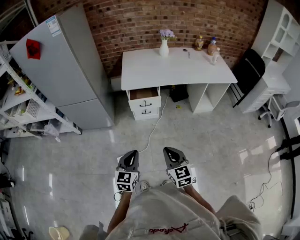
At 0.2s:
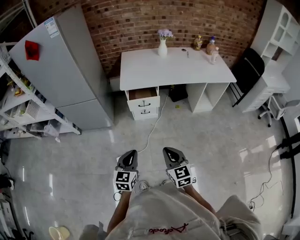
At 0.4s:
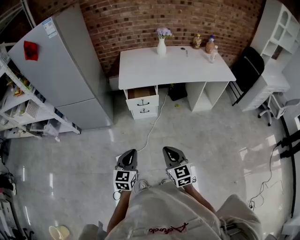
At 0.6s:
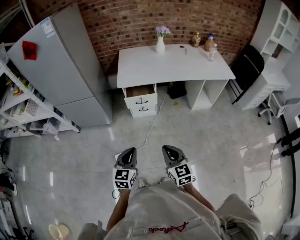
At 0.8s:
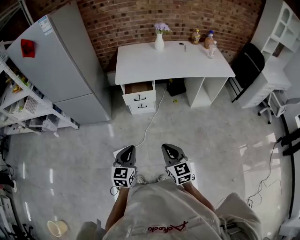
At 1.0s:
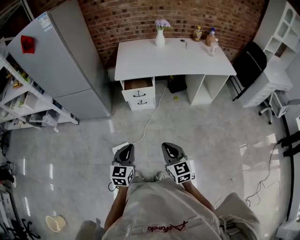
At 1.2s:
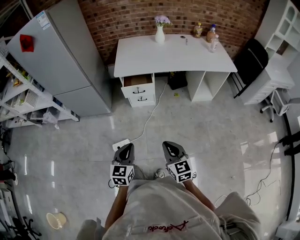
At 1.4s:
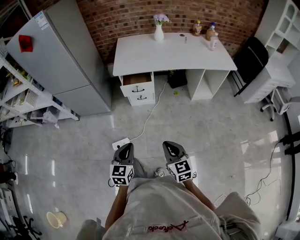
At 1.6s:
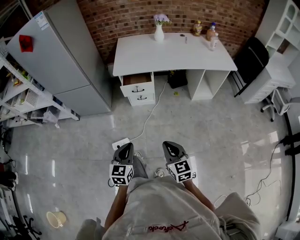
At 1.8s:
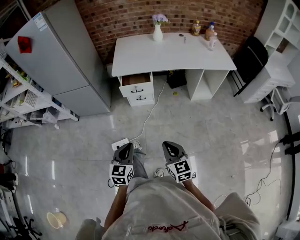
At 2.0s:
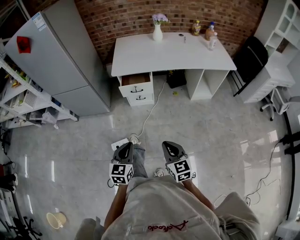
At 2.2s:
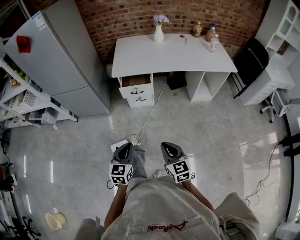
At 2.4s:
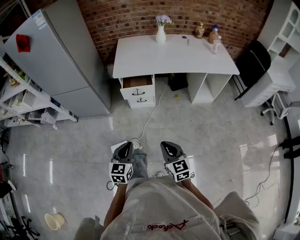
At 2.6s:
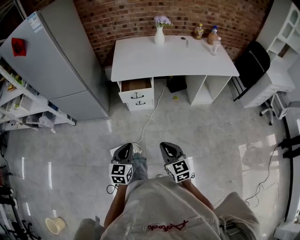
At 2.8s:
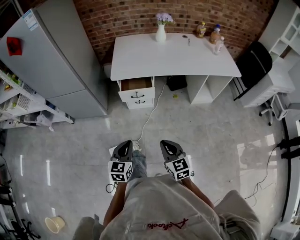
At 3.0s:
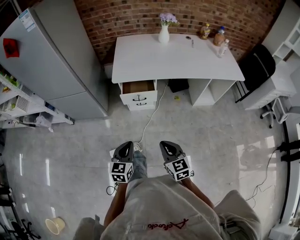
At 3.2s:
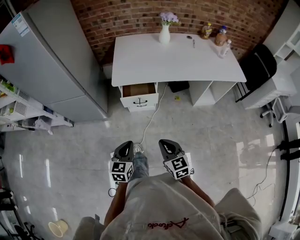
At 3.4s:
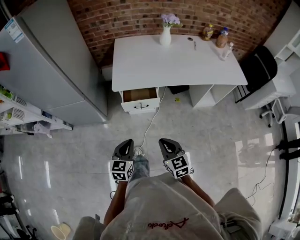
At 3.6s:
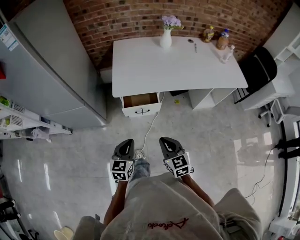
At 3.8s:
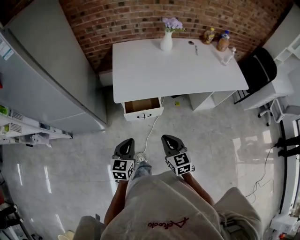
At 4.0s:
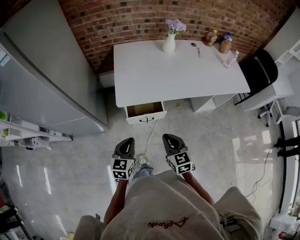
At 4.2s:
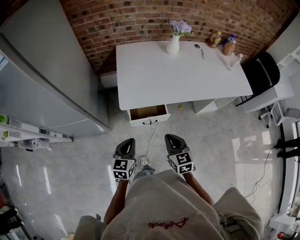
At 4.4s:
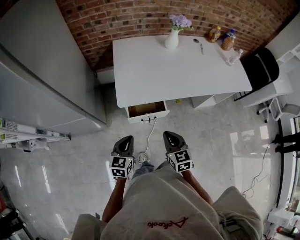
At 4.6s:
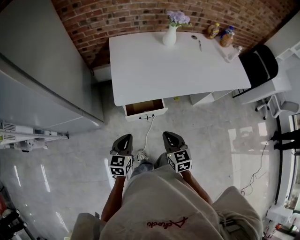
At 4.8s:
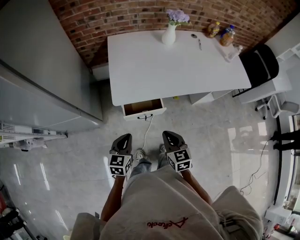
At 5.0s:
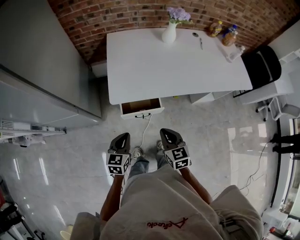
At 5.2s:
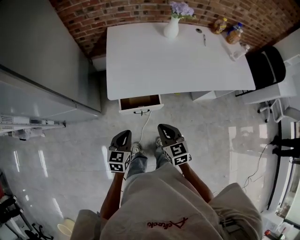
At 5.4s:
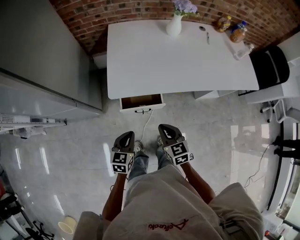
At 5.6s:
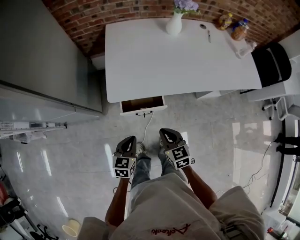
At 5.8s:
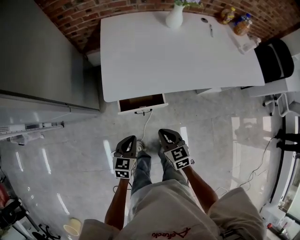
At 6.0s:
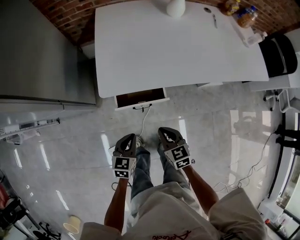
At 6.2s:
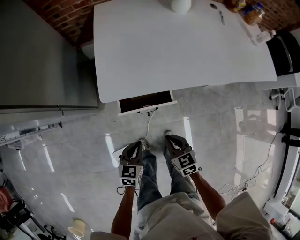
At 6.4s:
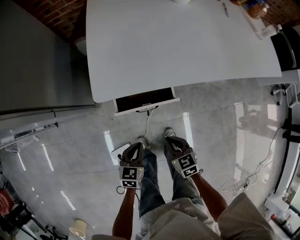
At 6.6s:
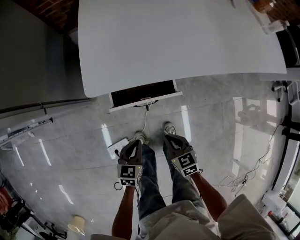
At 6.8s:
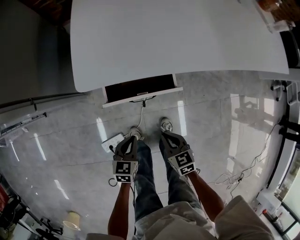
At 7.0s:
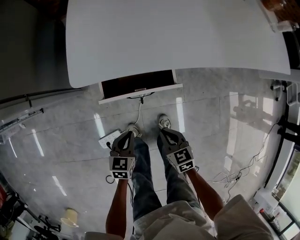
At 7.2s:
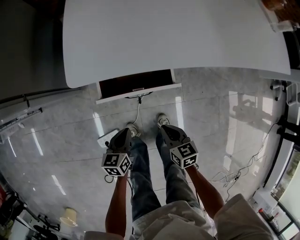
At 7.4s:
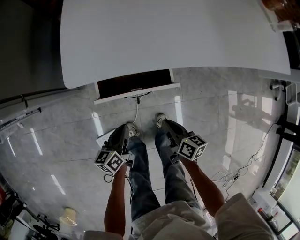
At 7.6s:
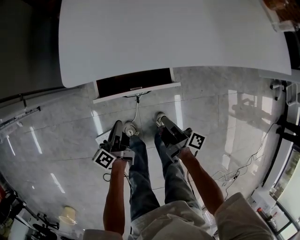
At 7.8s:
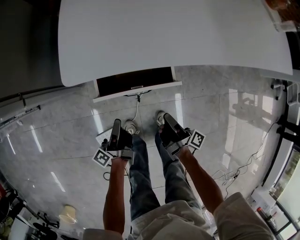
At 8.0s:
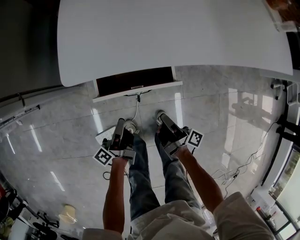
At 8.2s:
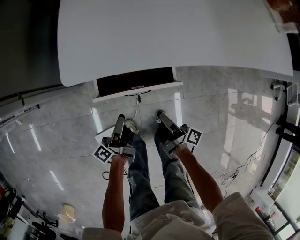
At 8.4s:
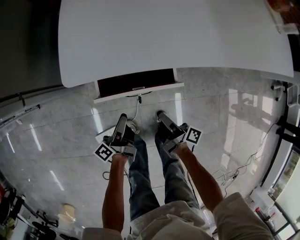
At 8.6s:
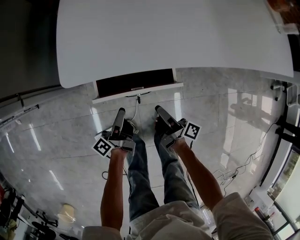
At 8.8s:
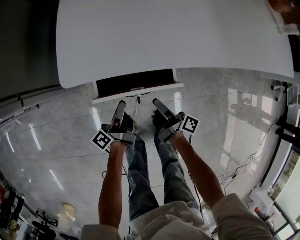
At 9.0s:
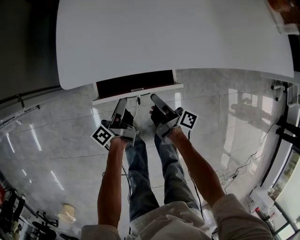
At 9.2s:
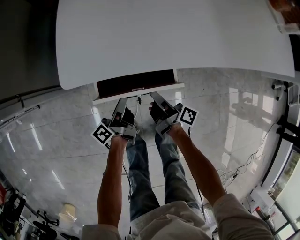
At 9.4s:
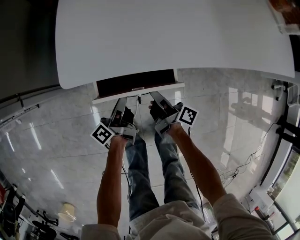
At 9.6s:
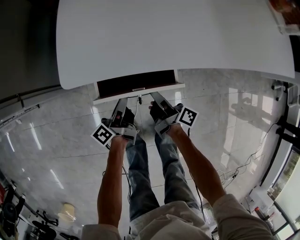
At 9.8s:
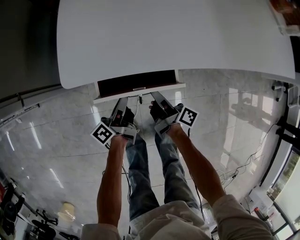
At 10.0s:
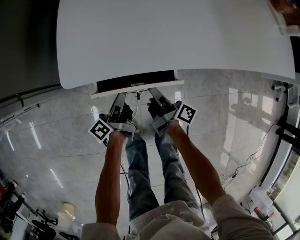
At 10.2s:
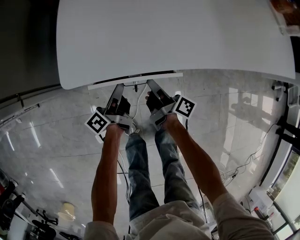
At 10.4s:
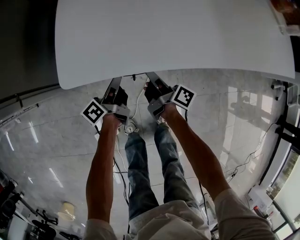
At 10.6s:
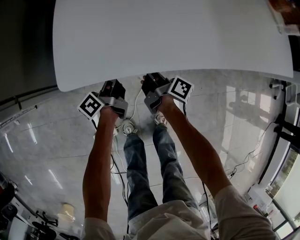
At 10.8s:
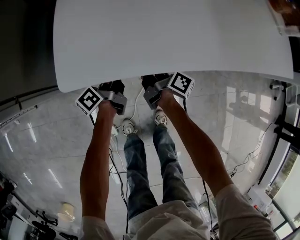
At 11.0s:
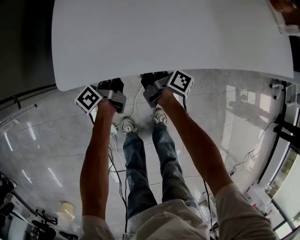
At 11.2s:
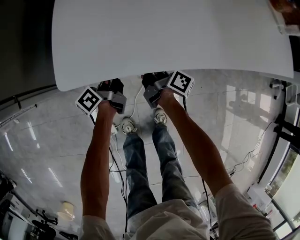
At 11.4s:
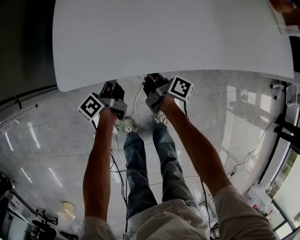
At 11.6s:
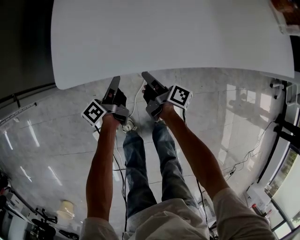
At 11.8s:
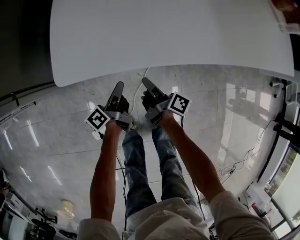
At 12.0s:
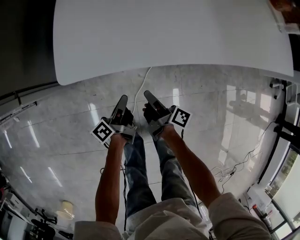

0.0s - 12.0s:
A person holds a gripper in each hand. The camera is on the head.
0.0s - 1.6s: The grippers both shift to the right by some 10 cm.
1.6s - 3.0s: Both grippers move forward, about 15 cm.
3.0s - 4.4s: The right gripper moves forward, about 25 cm. The left gripper goes about 30 cm forward and to the left.
4.4s - 6.0s: The left gripper moves downward and to the right, about 15 cm; the right gripper goes some 15 cm downward.
6.0s - 7.6s: The two grippers go approximately 20 cm downward. The left gripper rotates around the line of its fingers by about 60 degrees, counterclockwise from behind; the right gripper twists some 80 degrees clockwise, seen from behind.
7.6s - 9.0s: The two grippers go roughly 10 cm forward. The left gripper opens up. Meanwhile the right gripper opens up.
9.0s - 10.4s: Both grippers move forward, about 10 cm. The right gripper closes. Meanwhile the left gripper closes up.
10.4s - 12.0s: The two grippers go roughly 10 cm backward.

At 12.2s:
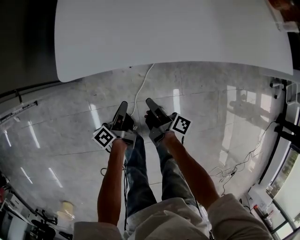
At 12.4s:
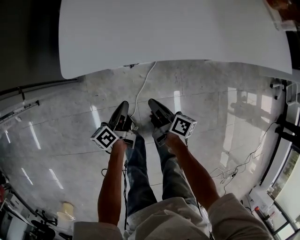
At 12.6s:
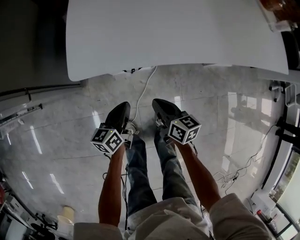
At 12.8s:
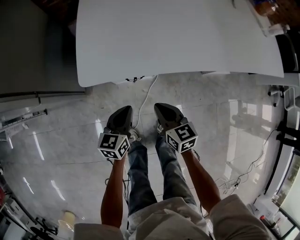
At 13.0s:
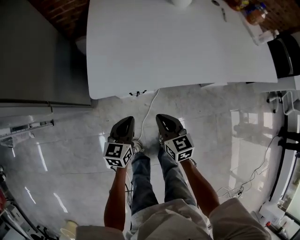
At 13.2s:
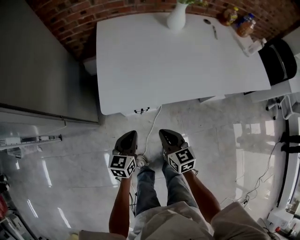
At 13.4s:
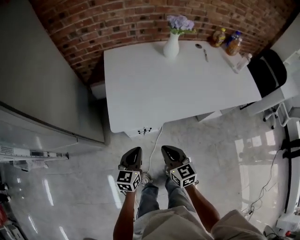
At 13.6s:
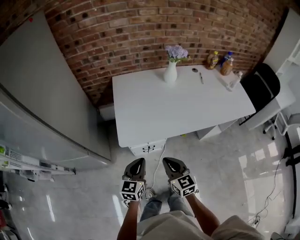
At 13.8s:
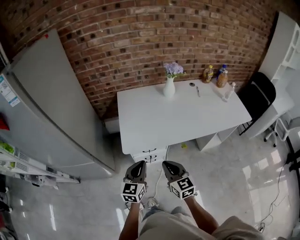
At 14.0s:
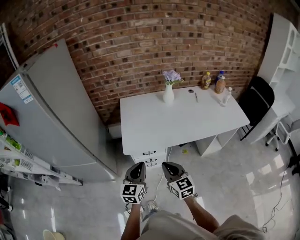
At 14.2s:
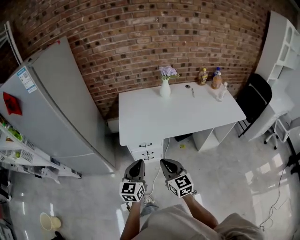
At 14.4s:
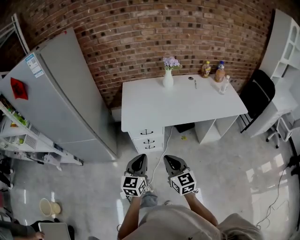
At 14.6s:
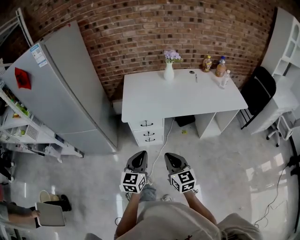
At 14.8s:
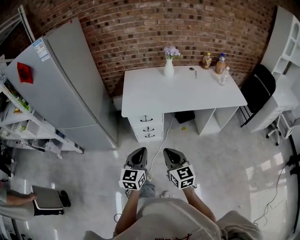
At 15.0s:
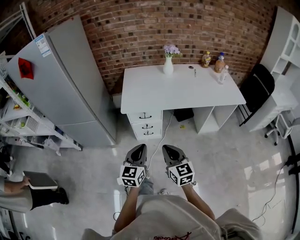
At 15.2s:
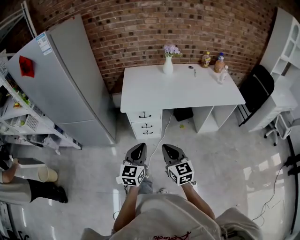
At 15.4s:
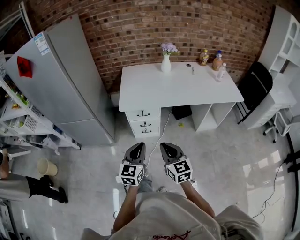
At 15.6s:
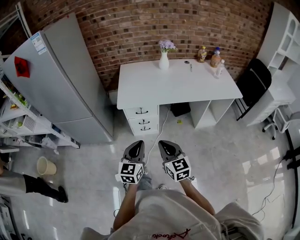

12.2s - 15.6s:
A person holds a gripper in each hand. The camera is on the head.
12.2s - 13.8s: The two grippers go approximately 40 cm upward. The left gripper twists roughly 80 degrees clockwise, seen from behind, while the right gripper twists roughly 80 degrees counterclockwise, seen from behind.
13.8s - 15.6s: The two grippers go roughly 25 cm backward.

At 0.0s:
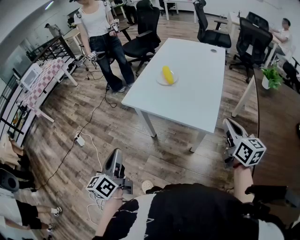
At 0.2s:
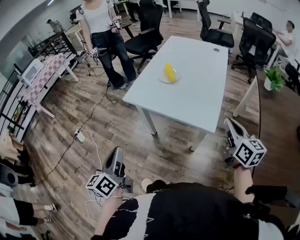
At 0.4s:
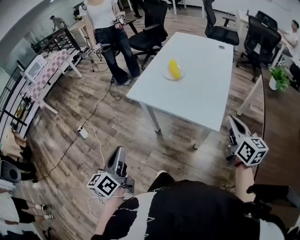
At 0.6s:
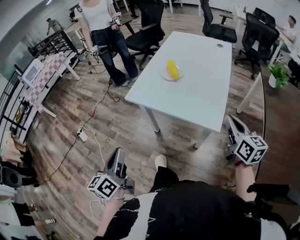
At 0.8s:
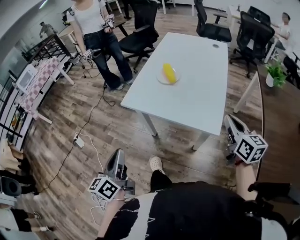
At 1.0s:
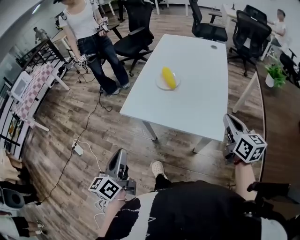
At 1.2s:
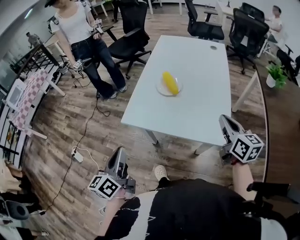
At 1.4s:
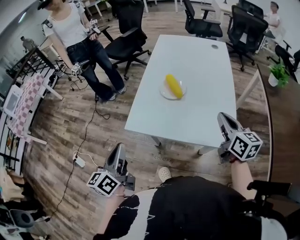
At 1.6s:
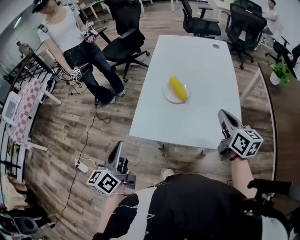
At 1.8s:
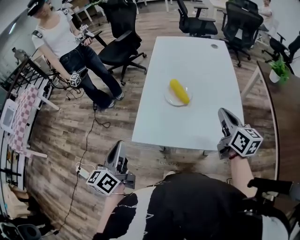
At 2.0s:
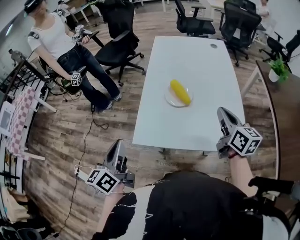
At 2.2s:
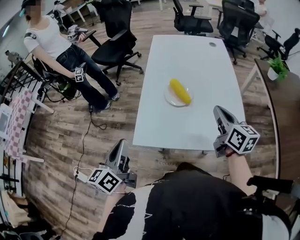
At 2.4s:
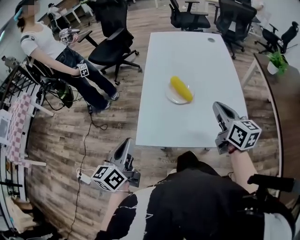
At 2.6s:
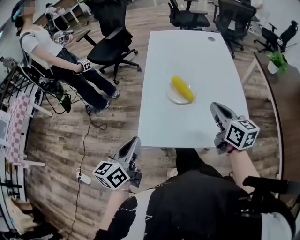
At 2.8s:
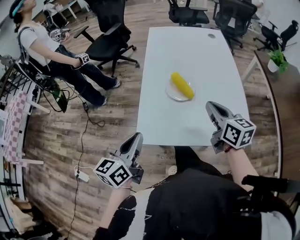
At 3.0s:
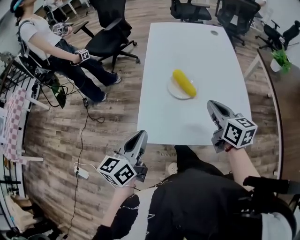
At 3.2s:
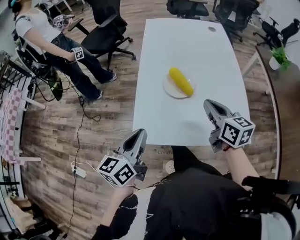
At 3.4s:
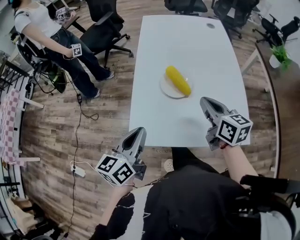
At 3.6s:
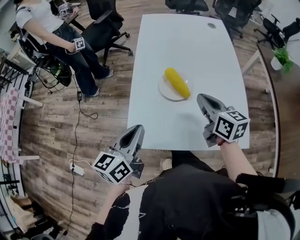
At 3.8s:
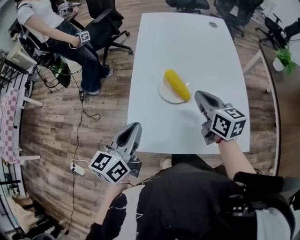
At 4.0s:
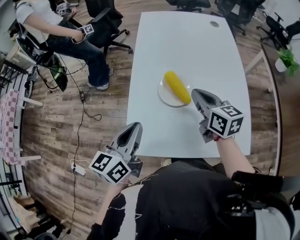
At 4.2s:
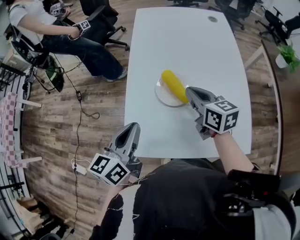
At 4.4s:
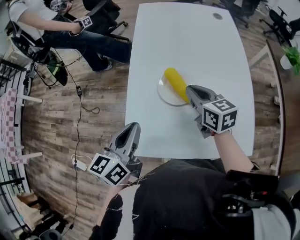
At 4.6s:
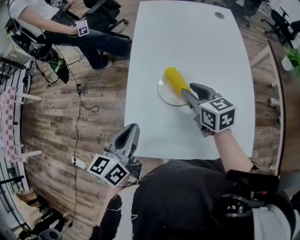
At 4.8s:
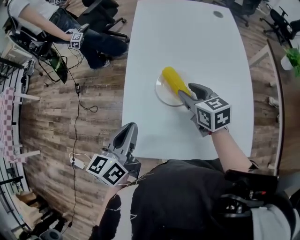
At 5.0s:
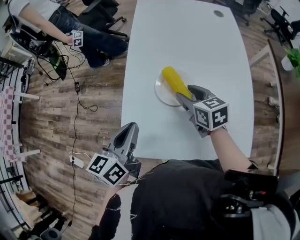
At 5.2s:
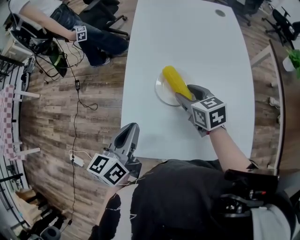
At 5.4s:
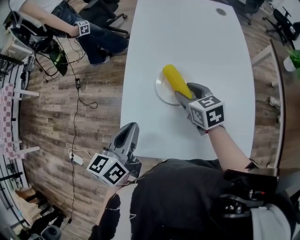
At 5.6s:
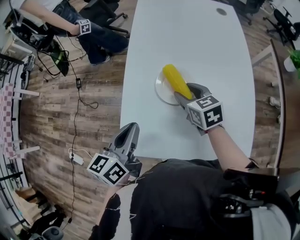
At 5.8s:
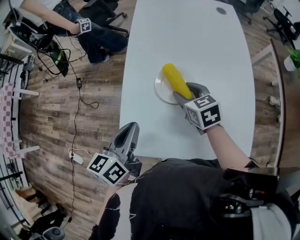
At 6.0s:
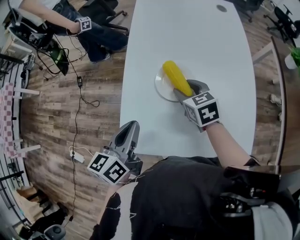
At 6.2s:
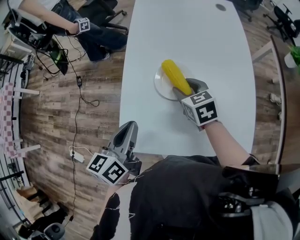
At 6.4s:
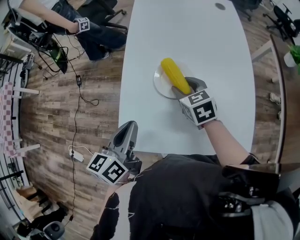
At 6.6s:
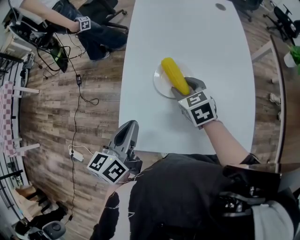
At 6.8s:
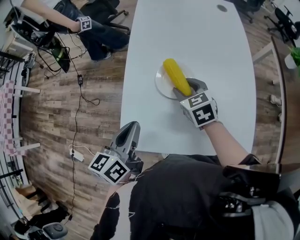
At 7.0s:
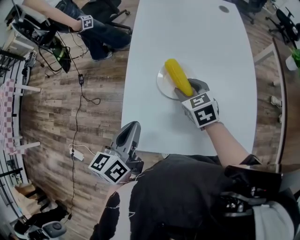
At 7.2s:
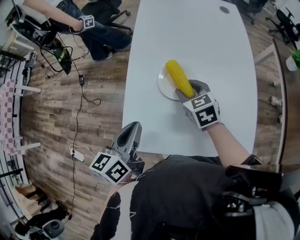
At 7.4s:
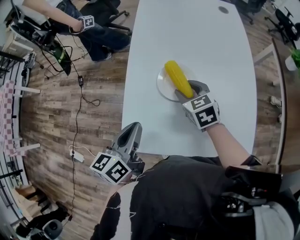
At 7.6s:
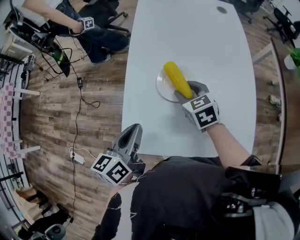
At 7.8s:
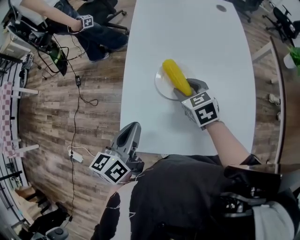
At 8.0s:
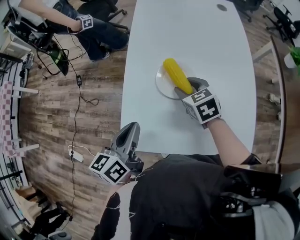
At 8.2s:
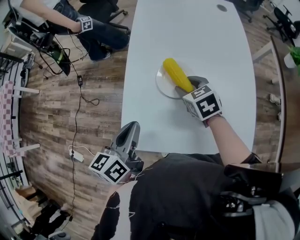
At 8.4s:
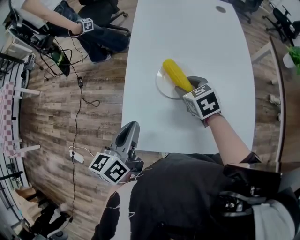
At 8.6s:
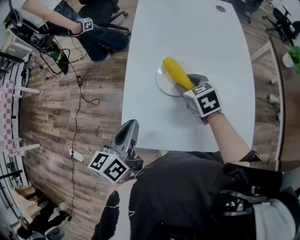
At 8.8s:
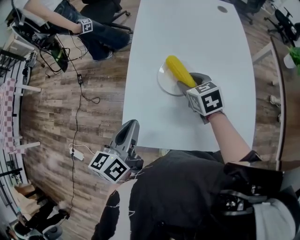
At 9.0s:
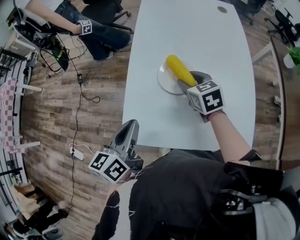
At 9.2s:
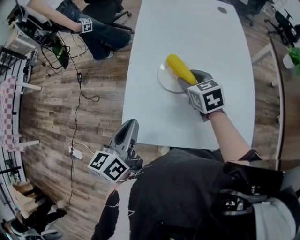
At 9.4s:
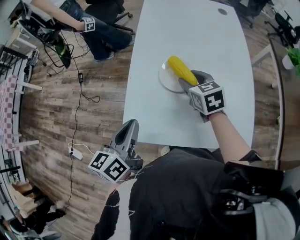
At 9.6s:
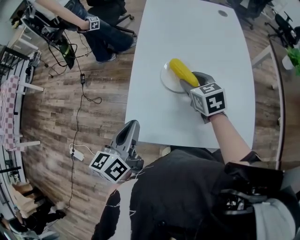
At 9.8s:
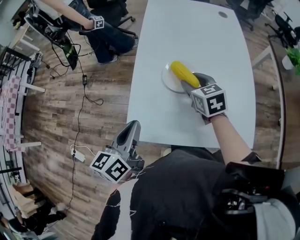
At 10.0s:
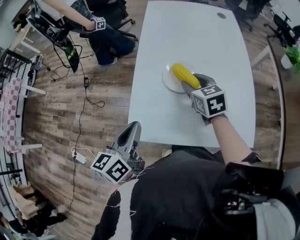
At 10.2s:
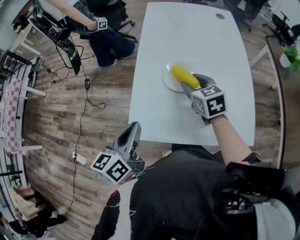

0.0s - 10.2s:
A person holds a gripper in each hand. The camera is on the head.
0.0s - 1.4s: The right gripper heads forward and to the left, covering approximately 20 cm; the left gripper heads forward, covering approximately 25 cm.
1.4s - 3.0s: The left gripper is displaced forward by approximately 15 cm, and swivels some 30 degrees. Meanwhile the right gripper goes roughly 15 cm to the left and forward.
3.0s - 4.4s: The left gripper travels forward by some 10 cm. Meanwhile the right gripper travels forward and downward by roughly 15 cm.
4.4s - 5.8s: The right gripper heads downward, covering some 5 cm, and opens up.
5.8s - 8.8s: The grippers stay close to where they were, moving slightly.
8.8s - 10.2s: The right gripper changes place by some 5 cm. The left gripper goes approximately 5 cm backward.
